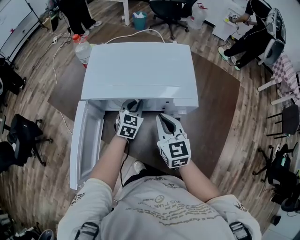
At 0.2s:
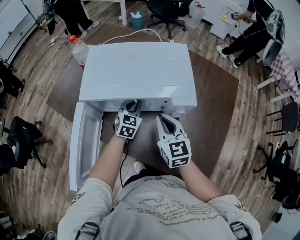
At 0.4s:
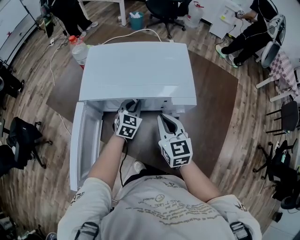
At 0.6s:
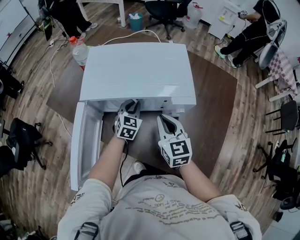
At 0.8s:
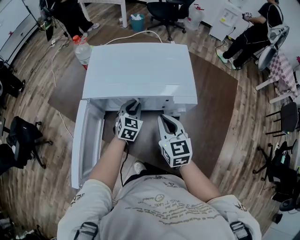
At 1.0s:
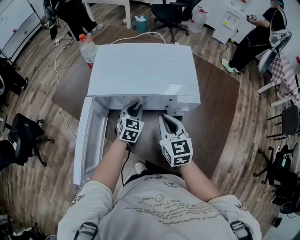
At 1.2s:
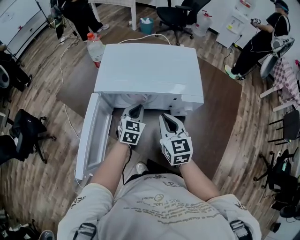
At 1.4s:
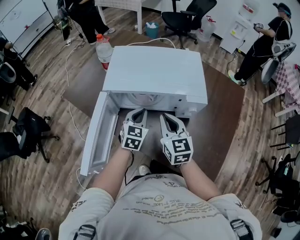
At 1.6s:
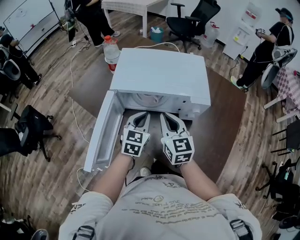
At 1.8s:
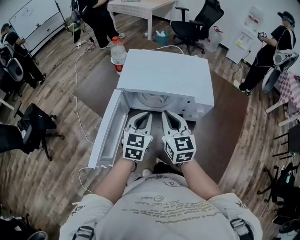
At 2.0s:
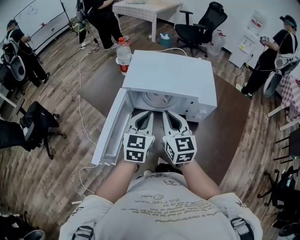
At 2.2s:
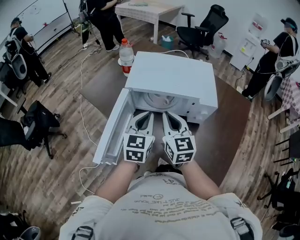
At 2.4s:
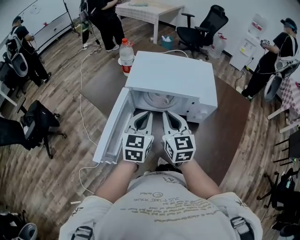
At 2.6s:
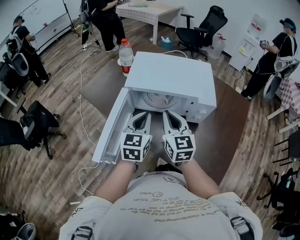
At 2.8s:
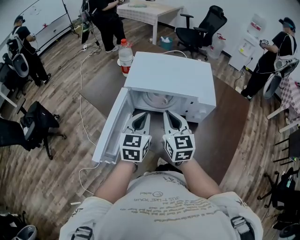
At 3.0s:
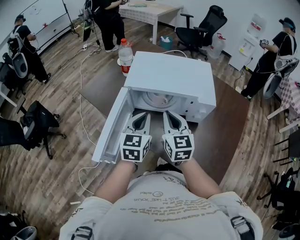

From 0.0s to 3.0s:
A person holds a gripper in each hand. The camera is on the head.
From 0.0s to 1.6s: The right gripper goes approximately 5 cm to the left, while the left gripper moves backward, upward and to the left, roughly 15 cm.
From 1.6s to 3.0s: The left gripper goes some 10 cm upward and to the left.

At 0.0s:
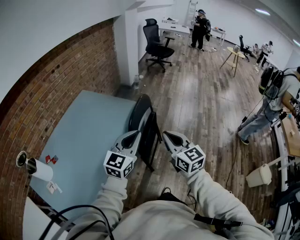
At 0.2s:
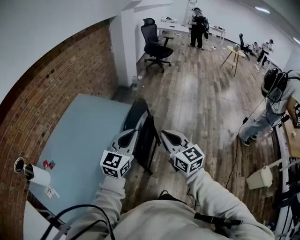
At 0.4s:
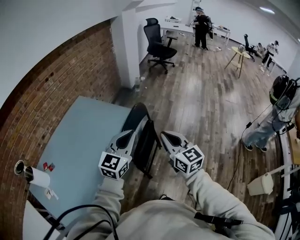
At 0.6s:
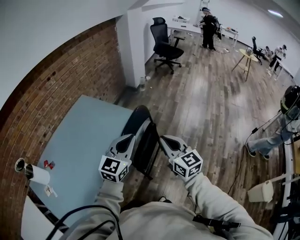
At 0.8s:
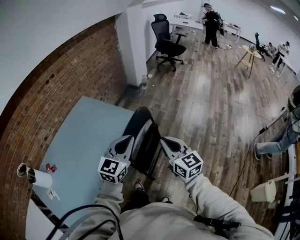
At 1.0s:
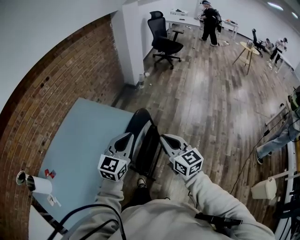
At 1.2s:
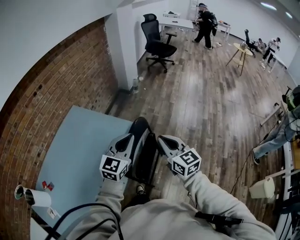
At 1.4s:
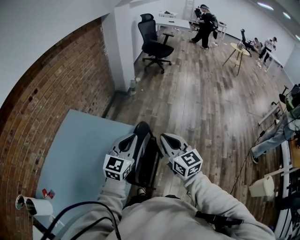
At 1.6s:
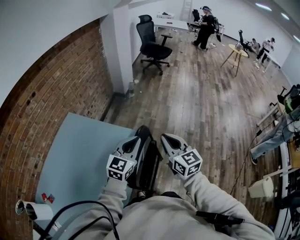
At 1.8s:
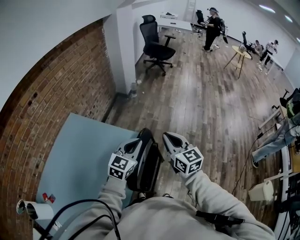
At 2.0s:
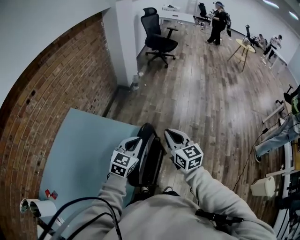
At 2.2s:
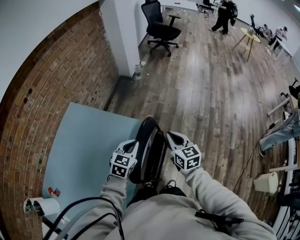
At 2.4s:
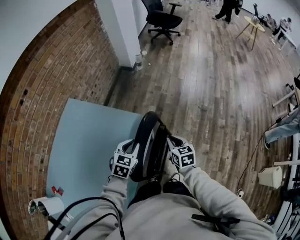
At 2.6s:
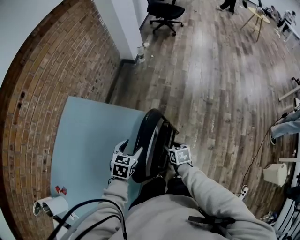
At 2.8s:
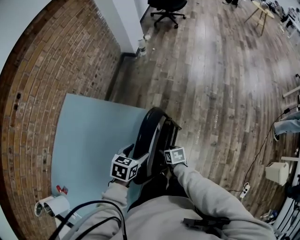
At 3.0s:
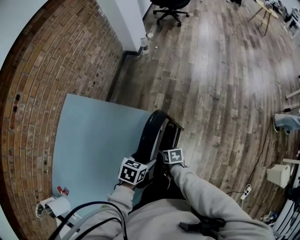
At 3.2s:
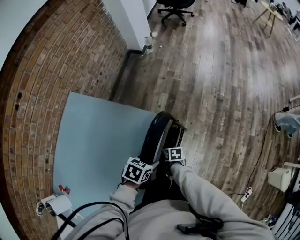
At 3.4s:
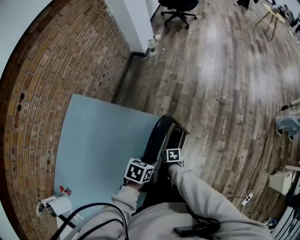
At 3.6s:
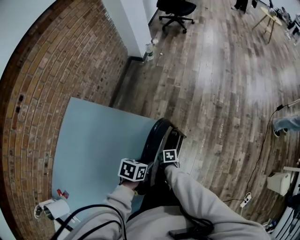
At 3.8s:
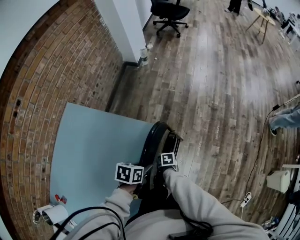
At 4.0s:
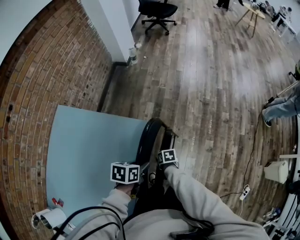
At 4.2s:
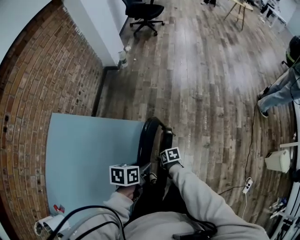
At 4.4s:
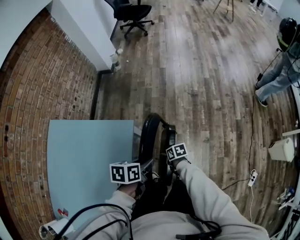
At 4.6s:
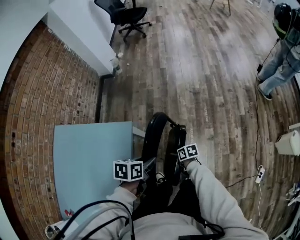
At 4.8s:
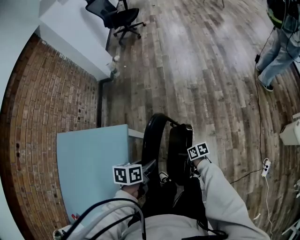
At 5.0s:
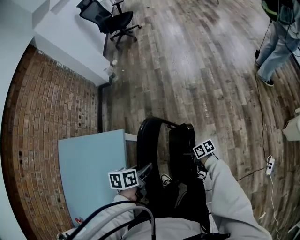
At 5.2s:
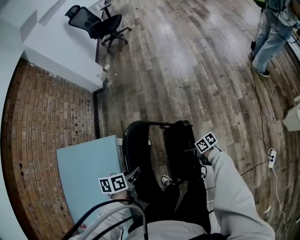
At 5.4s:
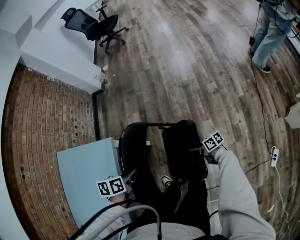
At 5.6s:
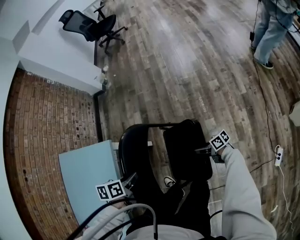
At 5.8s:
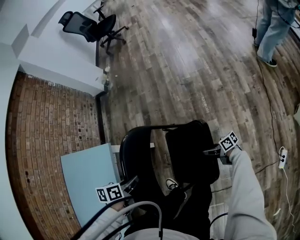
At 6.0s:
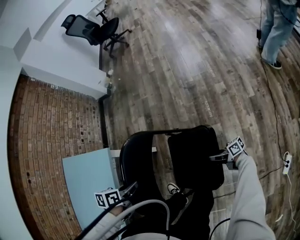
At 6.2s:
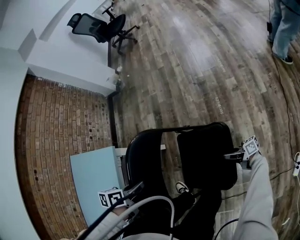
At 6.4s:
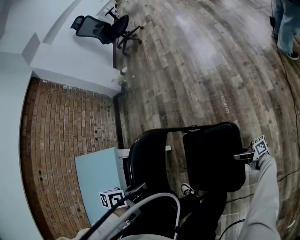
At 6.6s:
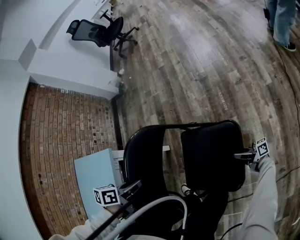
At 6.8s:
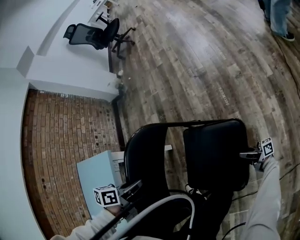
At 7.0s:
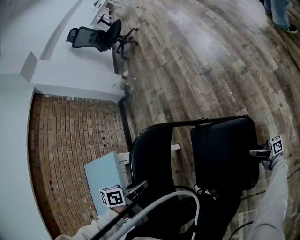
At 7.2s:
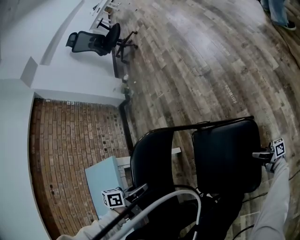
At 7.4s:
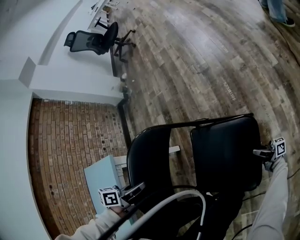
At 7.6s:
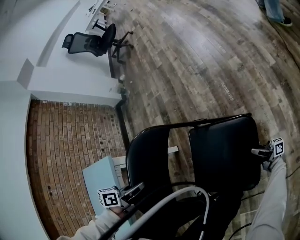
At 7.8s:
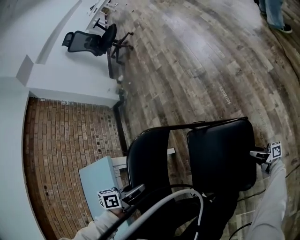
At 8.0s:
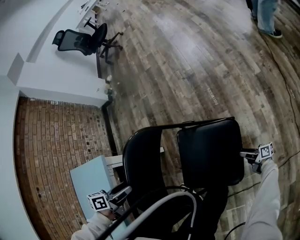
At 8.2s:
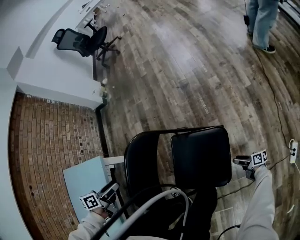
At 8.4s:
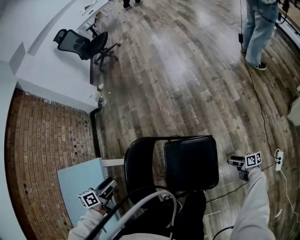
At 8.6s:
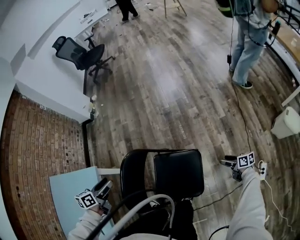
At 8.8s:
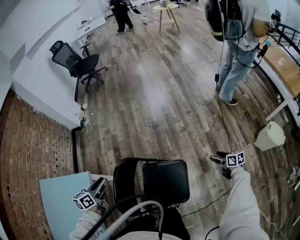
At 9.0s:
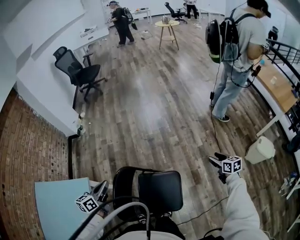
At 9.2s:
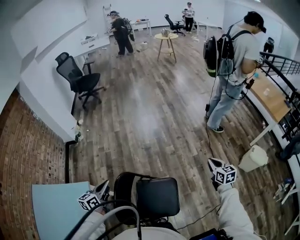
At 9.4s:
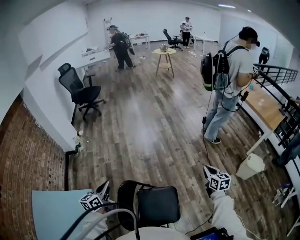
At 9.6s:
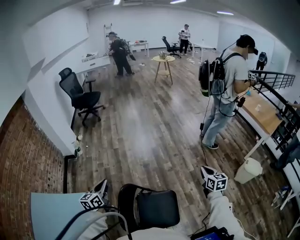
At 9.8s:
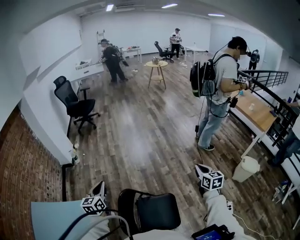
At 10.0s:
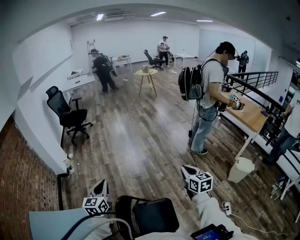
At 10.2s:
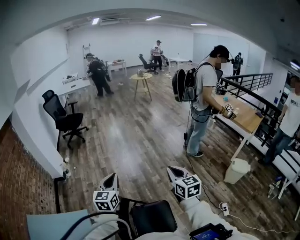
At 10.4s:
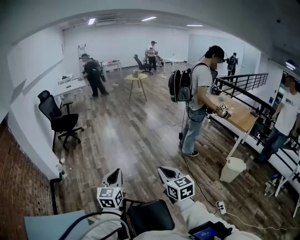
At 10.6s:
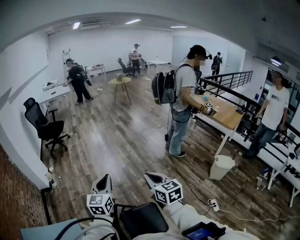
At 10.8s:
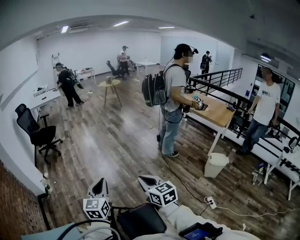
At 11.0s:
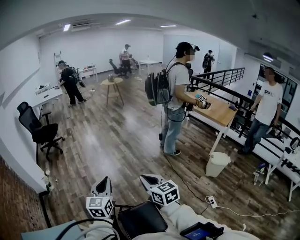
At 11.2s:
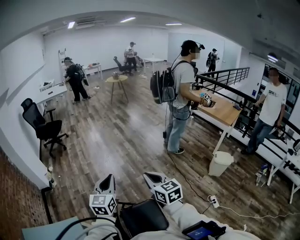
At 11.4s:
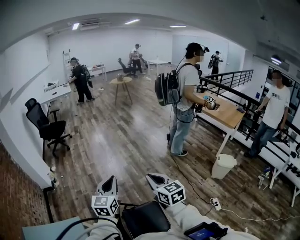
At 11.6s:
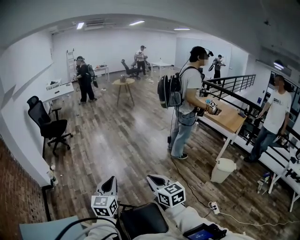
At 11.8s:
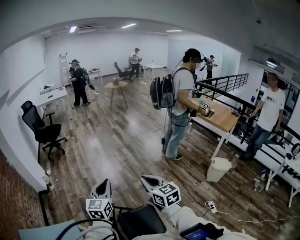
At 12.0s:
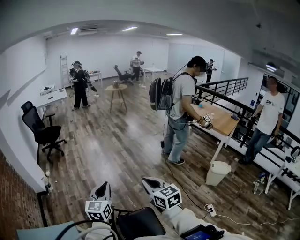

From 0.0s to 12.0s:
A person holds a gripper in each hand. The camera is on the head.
From 0.0s to 1.6s: The two grippers go approximately 35 cm forward.
From 1.6s to 3.0s: The left gripper is displaced downward by some 25 cm, angles its fingers downward, by some 50 degrees, and opens. The right gripper moves downward, roughly 50 cm, tips its fingers downward by some 50 degrees, and opens up.
From 3.0s to 4.4s: The right gripper changes place by about 15 cm; the left gripper moves roughly 15 cm, and closes.
From 4.4s to 6.0s: The right gripper changes place by about 40 cm, and angles its fingers upward, by roughly 50 degrees. Meanwhile the left gripper ends up some 15 cm from where it was.
From 6.0s to 7.6s: The left gripper goes approximately 10 cm downward. The right gripper goes roughly 20 cm downward and to the right, and swivels roughly 40 degrees.
From 7.6s to 9.0s: The right gripper travels upward and to the right by about 50 cm, angles its fingers downward, by roughly 60 degrees, and opens its fingers; the left gripper is displaced upward by about 30 cm, angles its fingers upward, by approximately 30 degrees, and opens and closes again.
From 9.0s to 10.4s: The left gripper goes about 25 cm upward and to the right, and swivels about 40 degrees, while the right gripper moves upward and to the left, roughly 50 cm, turns by some 30 degrees, and closes up.
From 10.4s to 12.0s: The grippers move only a little.

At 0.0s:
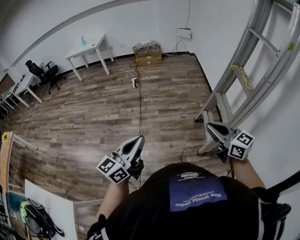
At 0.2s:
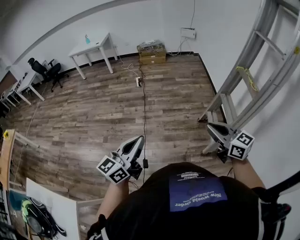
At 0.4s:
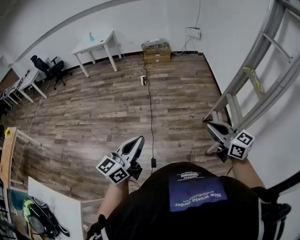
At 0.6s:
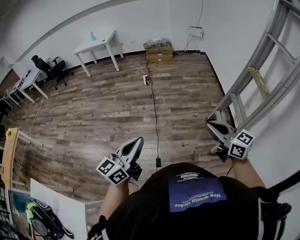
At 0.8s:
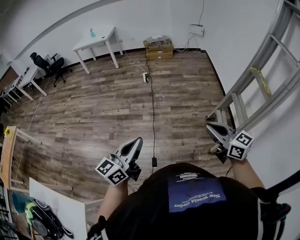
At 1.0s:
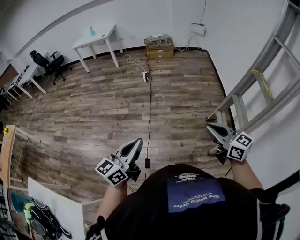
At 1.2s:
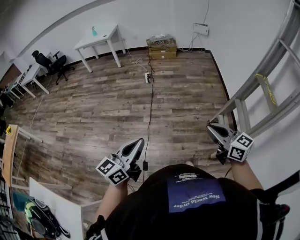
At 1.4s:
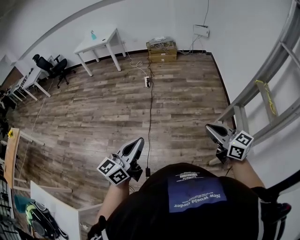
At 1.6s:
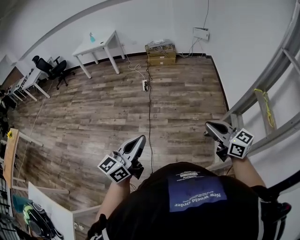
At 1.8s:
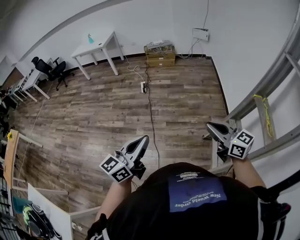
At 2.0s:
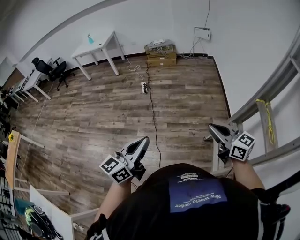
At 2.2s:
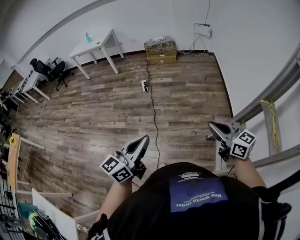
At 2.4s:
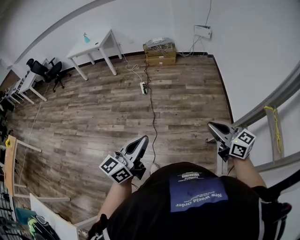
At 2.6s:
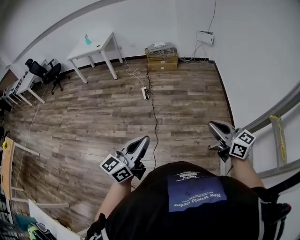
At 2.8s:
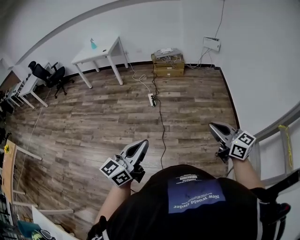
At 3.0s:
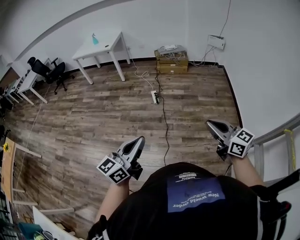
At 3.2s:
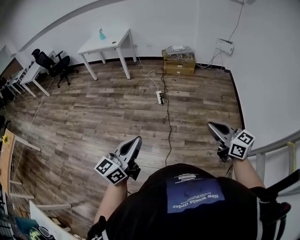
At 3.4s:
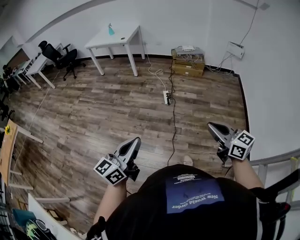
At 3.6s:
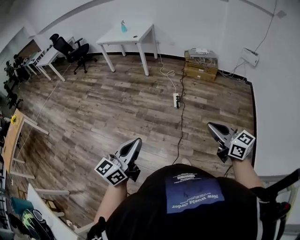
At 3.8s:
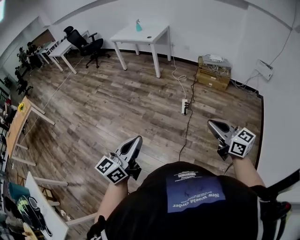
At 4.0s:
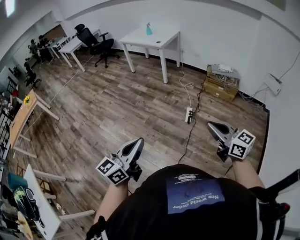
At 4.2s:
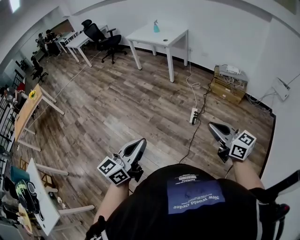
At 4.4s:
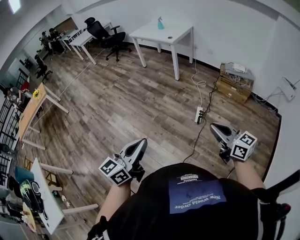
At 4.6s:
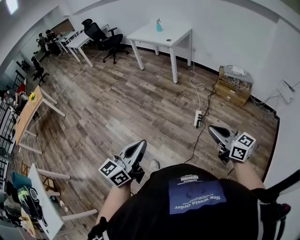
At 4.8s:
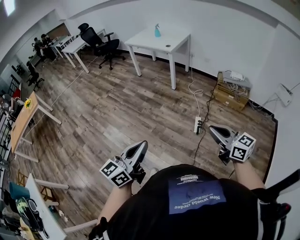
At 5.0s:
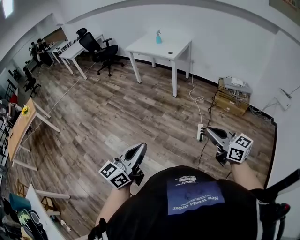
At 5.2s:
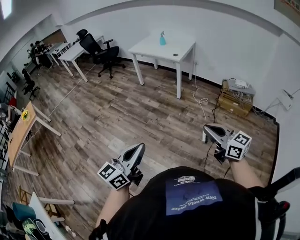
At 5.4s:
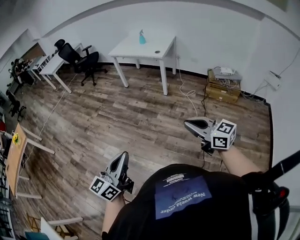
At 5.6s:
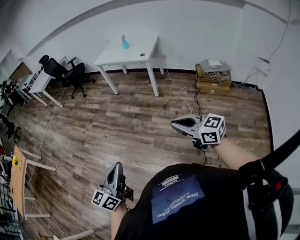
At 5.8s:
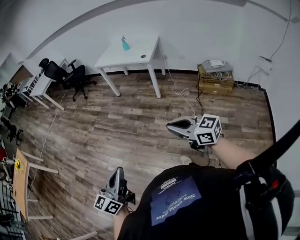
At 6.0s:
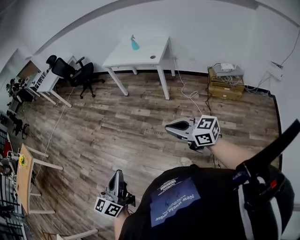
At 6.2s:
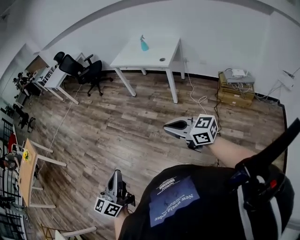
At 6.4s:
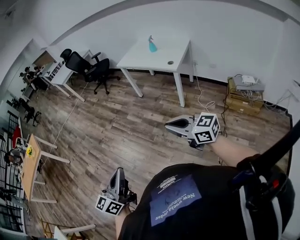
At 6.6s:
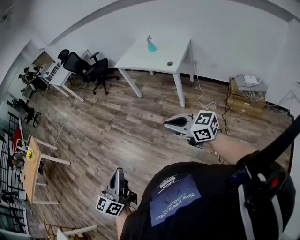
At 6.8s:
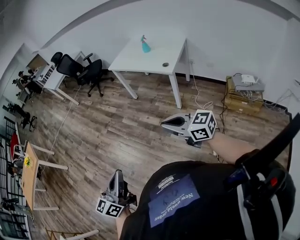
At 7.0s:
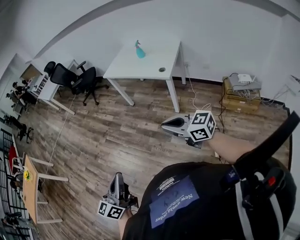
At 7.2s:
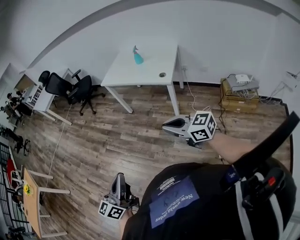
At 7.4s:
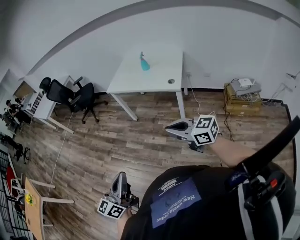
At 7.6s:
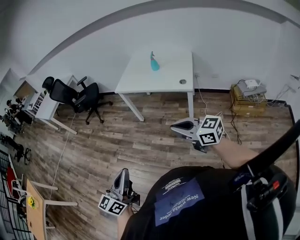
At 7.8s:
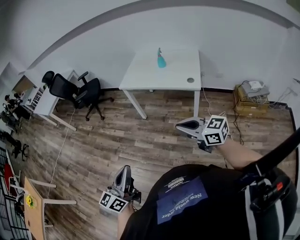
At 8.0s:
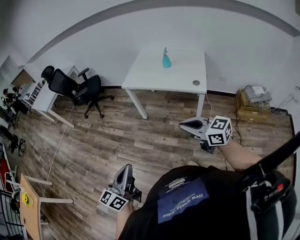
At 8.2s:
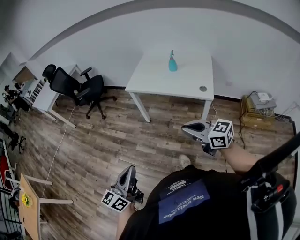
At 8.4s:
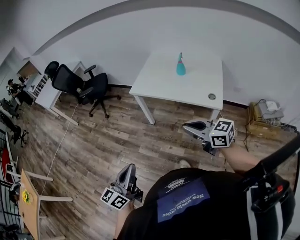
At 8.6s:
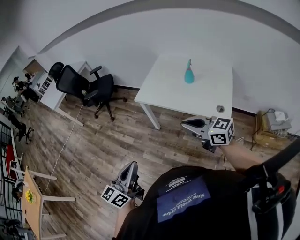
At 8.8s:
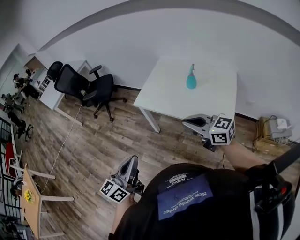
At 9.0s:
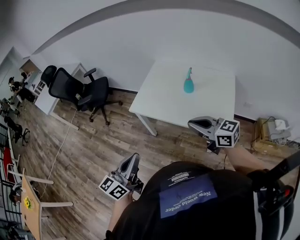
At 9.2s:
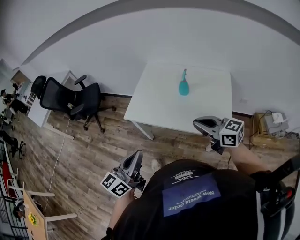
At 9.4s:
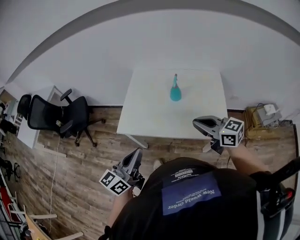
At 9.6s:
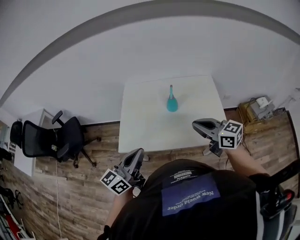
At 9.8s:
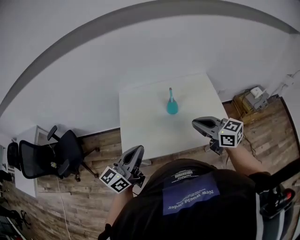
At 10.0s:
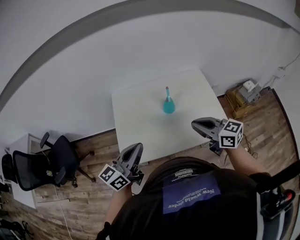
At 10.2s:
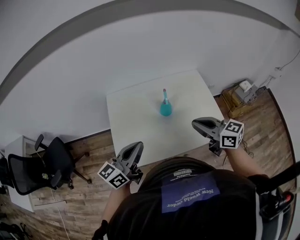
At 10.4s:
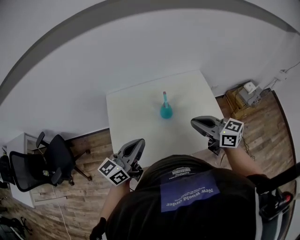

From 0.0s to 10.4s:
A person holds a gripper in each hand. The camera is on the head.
From 0.0s to 1.4s: The grippers both shift forward by approximately 15 cm.
From 1.4s to 3.0s: The two grippers go approximately 35 cm forward.
From 3.0s to 4.4s: The right gripper moves some 40 cm, and turns by about 30 degrees. The left gripper moves roughly 30 cm, and swivels approximately 30 degrees.
From 4.4s to 6.0s: The pair of grippers is taken forward and to the left, roughly 50 cm.
From 6.0s to 7.4s: Both grippers are carried forward, about 40 cm.
From 7.4s to 9.0s: The two grippers travel together, forward, about 50 cm.
From 9.0s to 10.4s: The left gripper changes place by some 40 cm, and swivels some 40 degrees. The right gripper ends up about 25 cm from where it was, and changes its angle by some 40 degrees.
